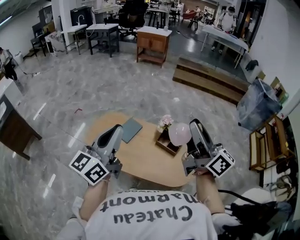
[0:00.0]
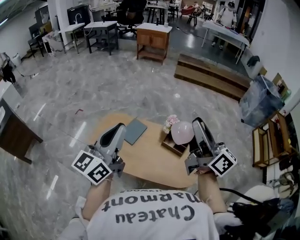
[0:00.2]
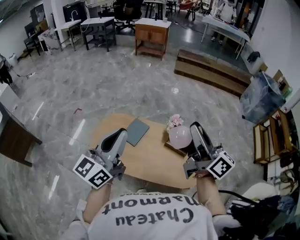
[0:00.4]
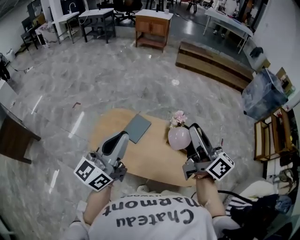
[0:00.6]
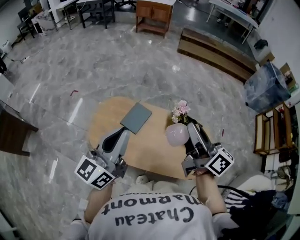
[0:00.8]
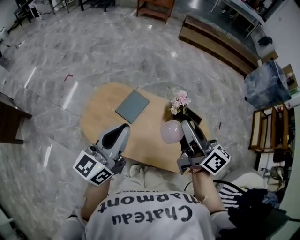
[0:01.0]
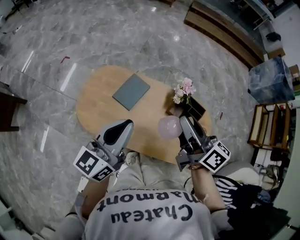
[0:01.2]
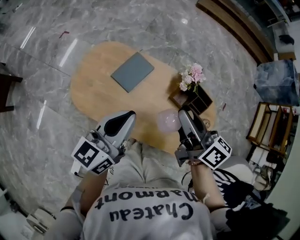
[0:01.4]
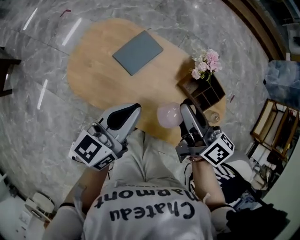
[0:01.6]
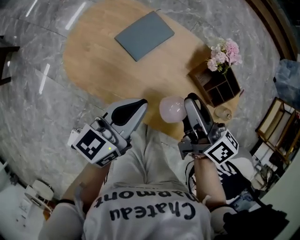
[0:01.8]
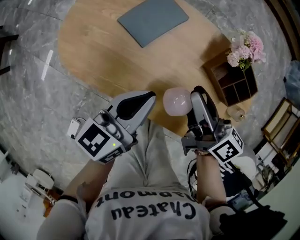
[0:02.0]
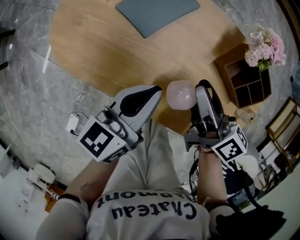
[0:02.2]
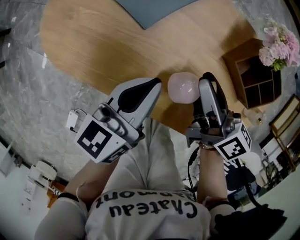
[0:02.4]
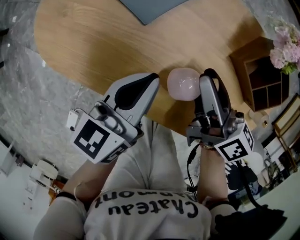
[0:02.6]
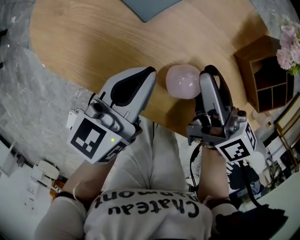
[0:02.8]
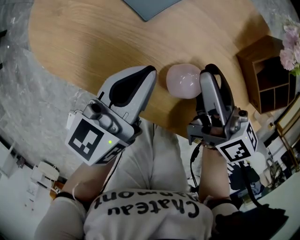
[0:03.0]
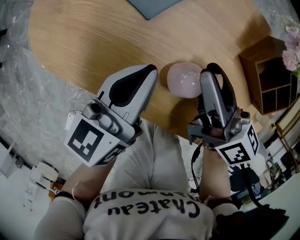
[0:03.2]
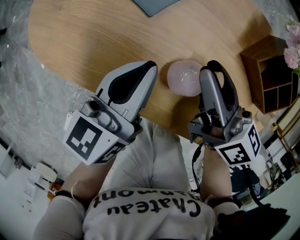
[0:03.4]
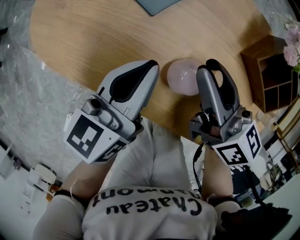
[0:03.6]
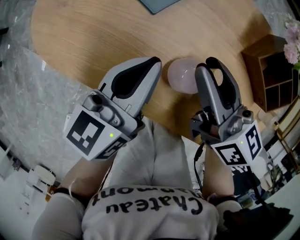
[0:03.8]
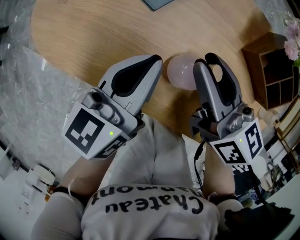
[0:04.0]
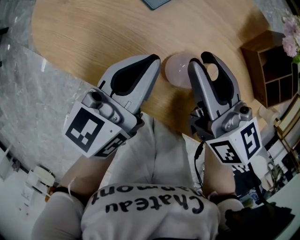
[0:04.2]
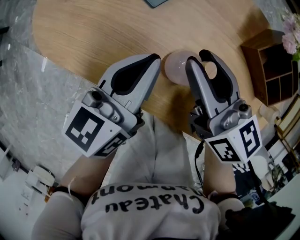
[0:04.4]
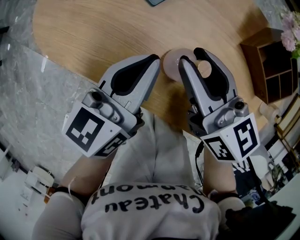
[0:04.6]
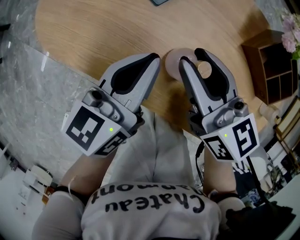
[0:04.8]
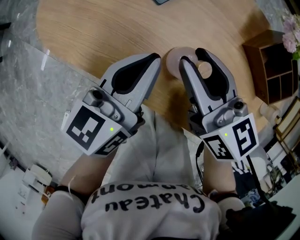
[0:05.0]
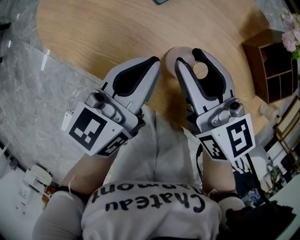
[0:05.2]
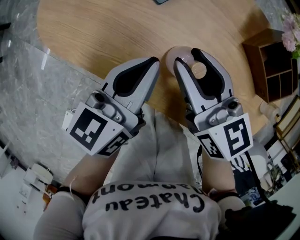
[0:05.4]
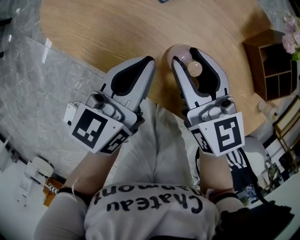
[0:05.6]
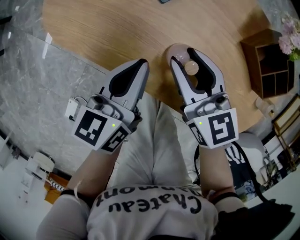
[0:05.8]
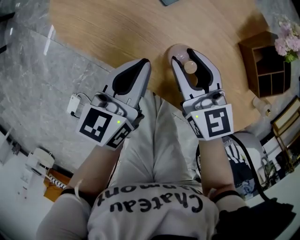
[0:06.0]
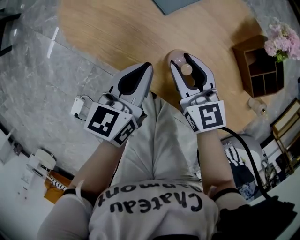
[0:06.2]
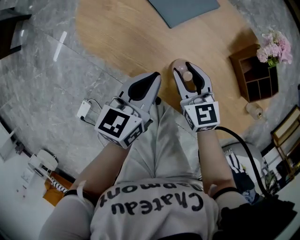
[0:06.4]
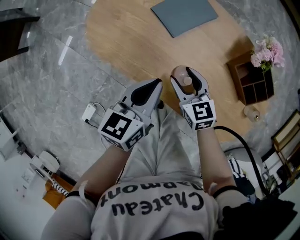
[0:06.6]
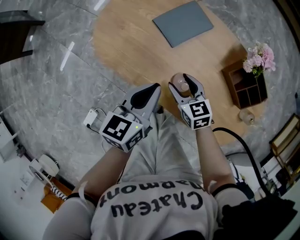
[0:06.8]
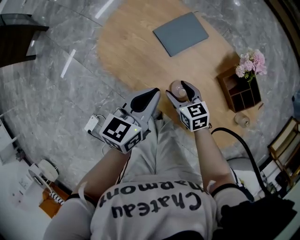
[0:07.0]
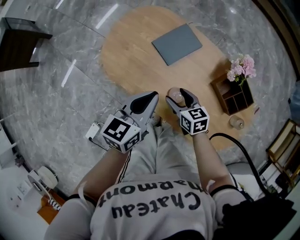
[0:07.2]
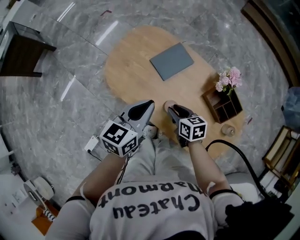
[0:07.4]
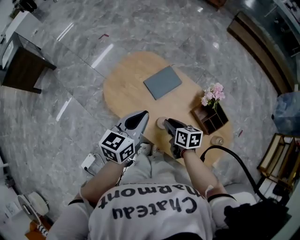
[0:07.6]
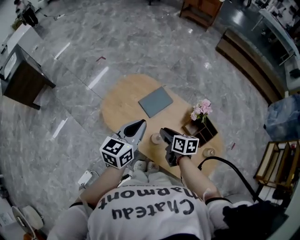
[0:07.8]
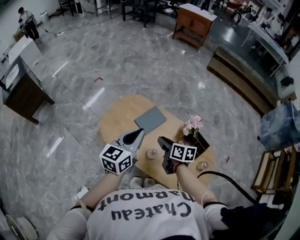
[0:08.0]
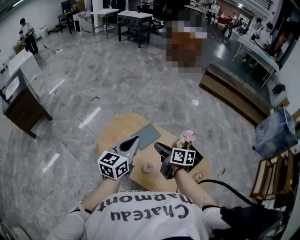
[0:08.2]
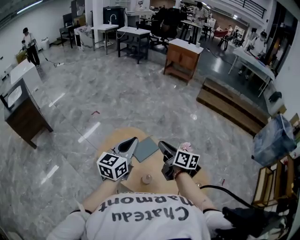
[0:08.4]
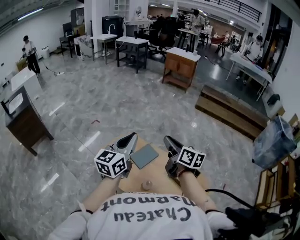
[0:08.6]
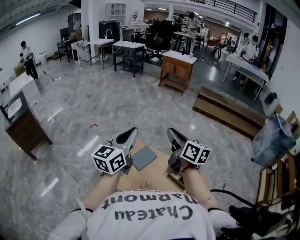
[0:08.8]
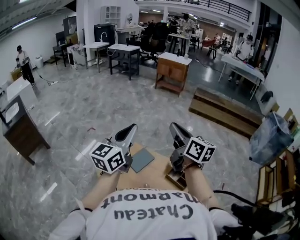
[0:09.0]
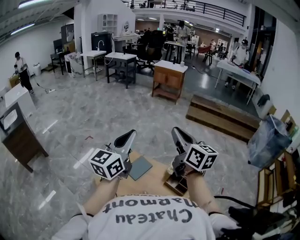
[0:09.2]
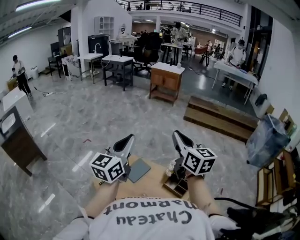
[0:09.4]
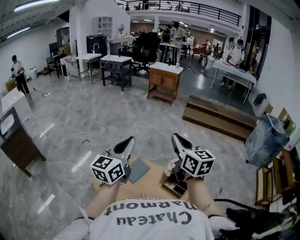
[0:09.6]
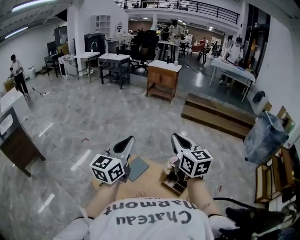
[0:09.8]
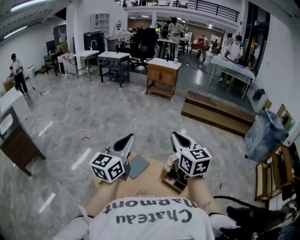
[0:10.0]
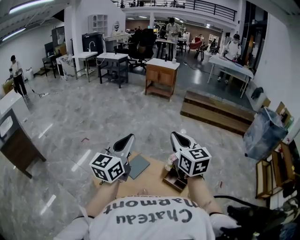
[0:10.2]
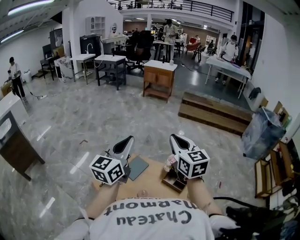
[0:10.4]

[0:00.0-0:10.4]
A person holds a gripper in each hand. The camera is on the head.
0:00.0 to 0:01.4: The right gripper shifts roughly 35 cm downward, forward and to the left, and rotates some 30 degrees, while the left gripper goes about 30 cm downward and forward, and turns by roughly 20 degrees.
0:01.4 to 0:03.0: The grippers both shift downward by roughly 30 cm.
0:03.0 to 0:04.4: The right gripper moves about 5 cm, and swivels approximately 30 degrees.
0:04.4 to 0:06.0: There are only small adjustments of the grippers.
0:06.0 to 0:07.4: The left gripper goes roughly 20 cm upward; the right gripper is displaced upward by about 5 cm, rotates approximately 30 degrees, and opens and closes again.
0:07.4 to 0:09.0: Both grippers move upward, approximately 40 cm. The left gripper points its fingers roughly 30 degrees further upward. Meanwhile the right gripper tilts its fingers roughly 50 degrees upward, and closes up.
0:09.0 to 0:10.4: The right gripper shifts by some 5 cm, and rotates approximately 30 degrees.

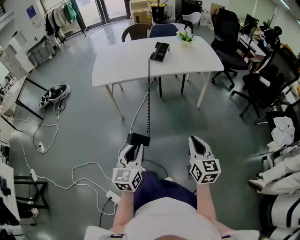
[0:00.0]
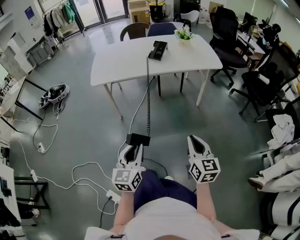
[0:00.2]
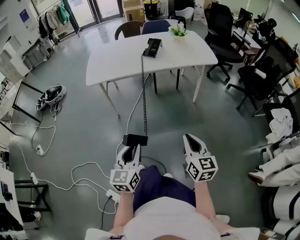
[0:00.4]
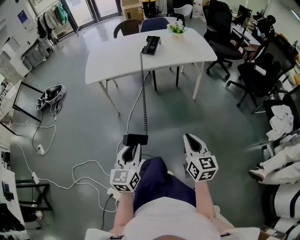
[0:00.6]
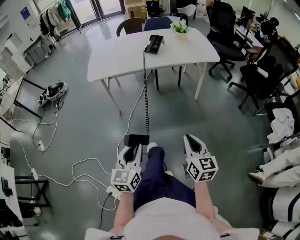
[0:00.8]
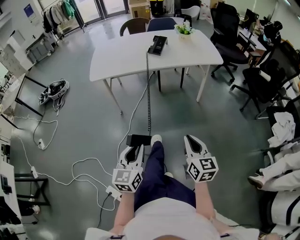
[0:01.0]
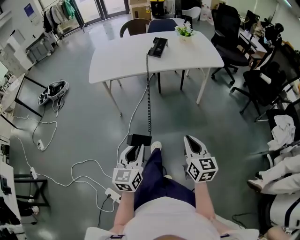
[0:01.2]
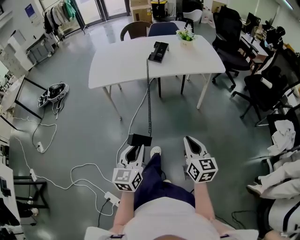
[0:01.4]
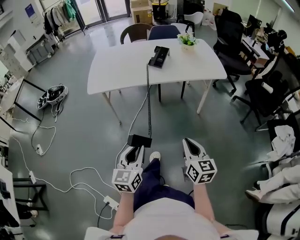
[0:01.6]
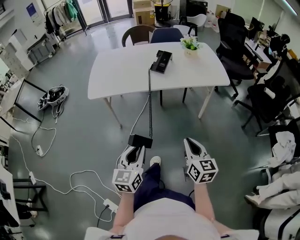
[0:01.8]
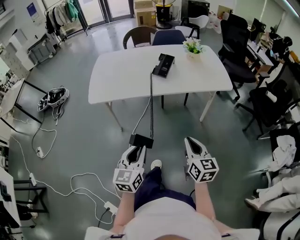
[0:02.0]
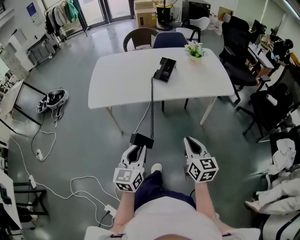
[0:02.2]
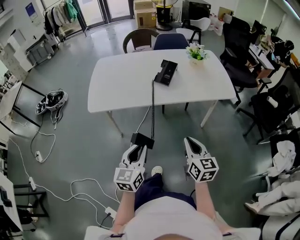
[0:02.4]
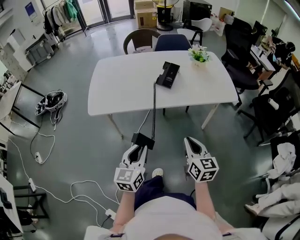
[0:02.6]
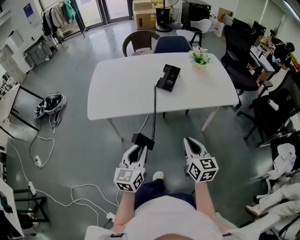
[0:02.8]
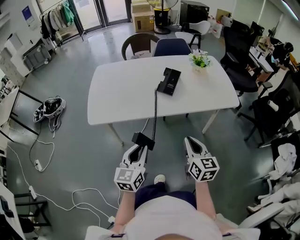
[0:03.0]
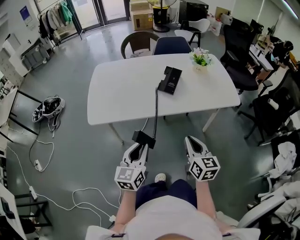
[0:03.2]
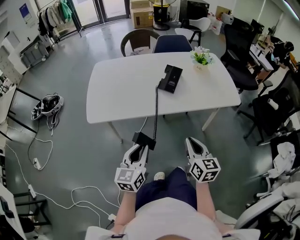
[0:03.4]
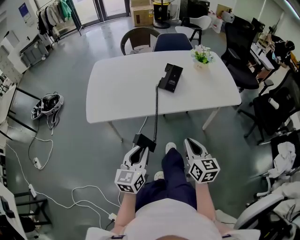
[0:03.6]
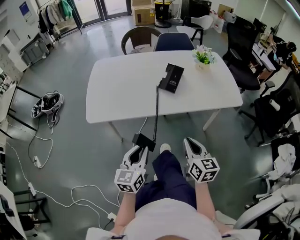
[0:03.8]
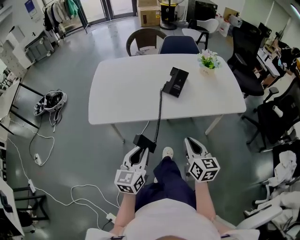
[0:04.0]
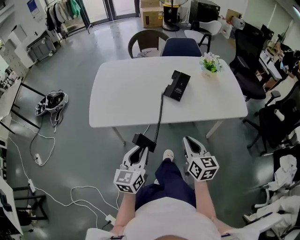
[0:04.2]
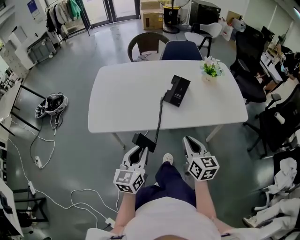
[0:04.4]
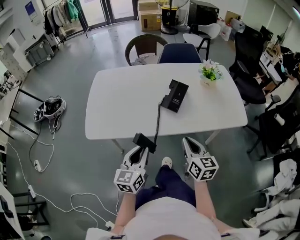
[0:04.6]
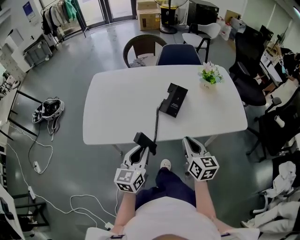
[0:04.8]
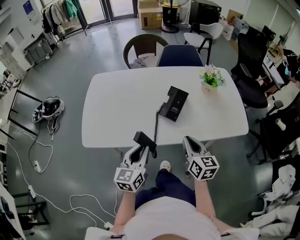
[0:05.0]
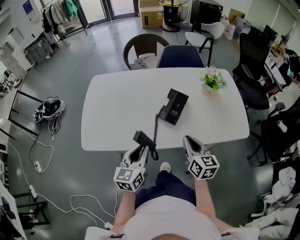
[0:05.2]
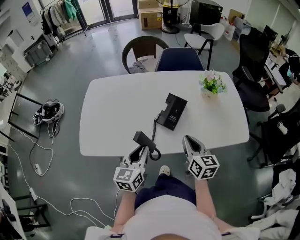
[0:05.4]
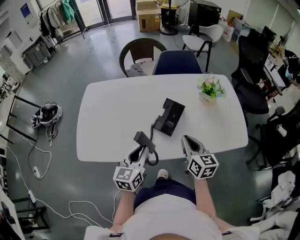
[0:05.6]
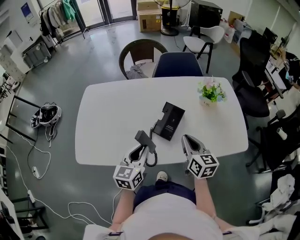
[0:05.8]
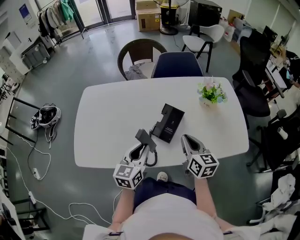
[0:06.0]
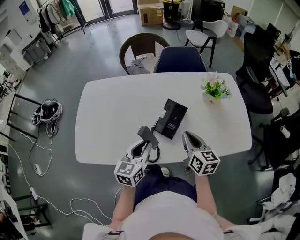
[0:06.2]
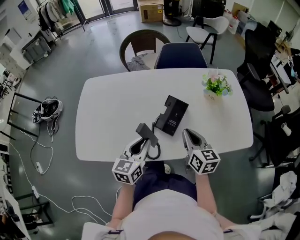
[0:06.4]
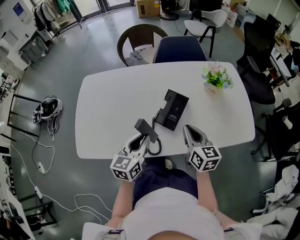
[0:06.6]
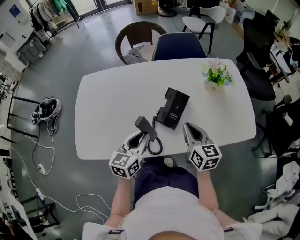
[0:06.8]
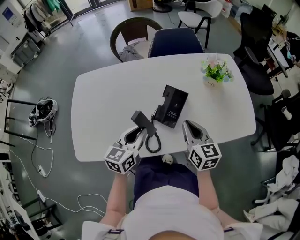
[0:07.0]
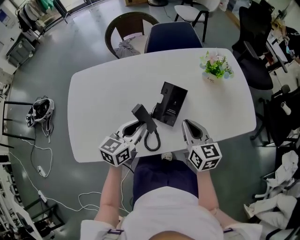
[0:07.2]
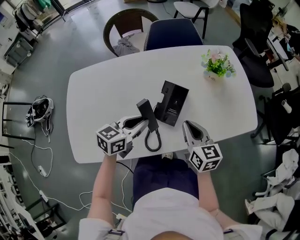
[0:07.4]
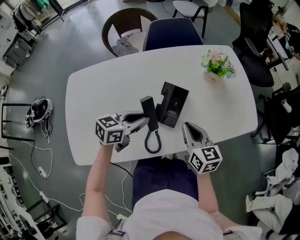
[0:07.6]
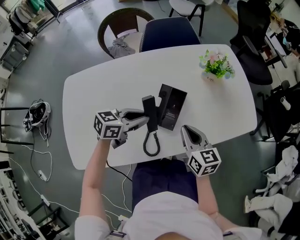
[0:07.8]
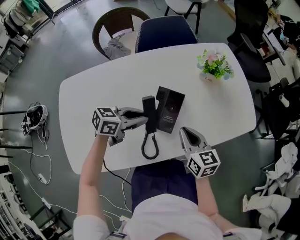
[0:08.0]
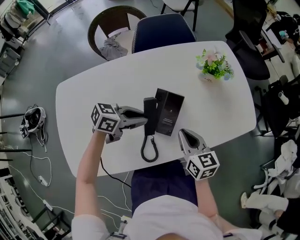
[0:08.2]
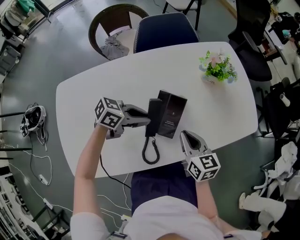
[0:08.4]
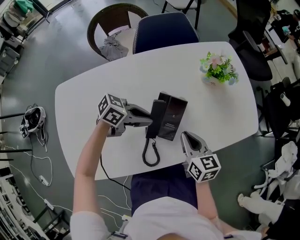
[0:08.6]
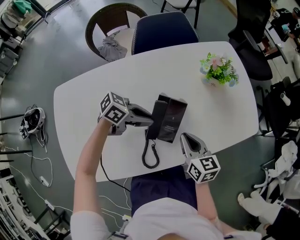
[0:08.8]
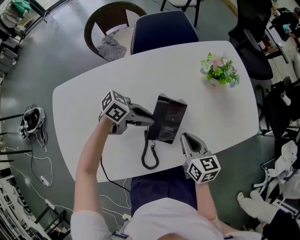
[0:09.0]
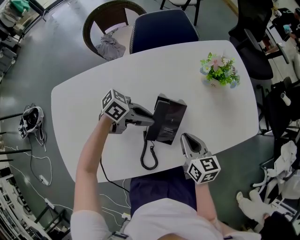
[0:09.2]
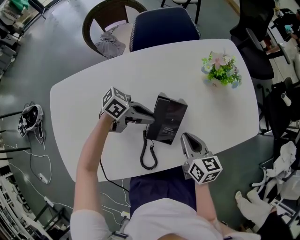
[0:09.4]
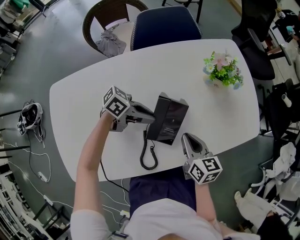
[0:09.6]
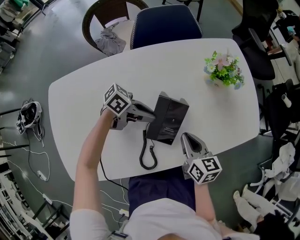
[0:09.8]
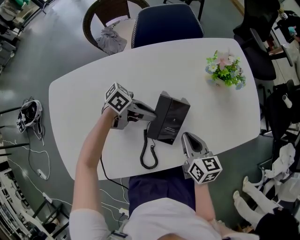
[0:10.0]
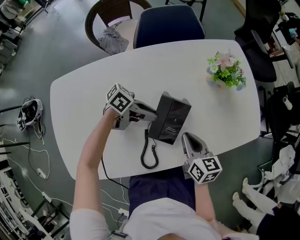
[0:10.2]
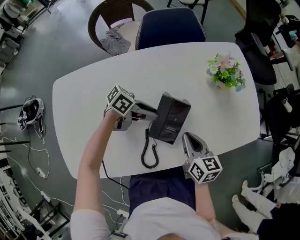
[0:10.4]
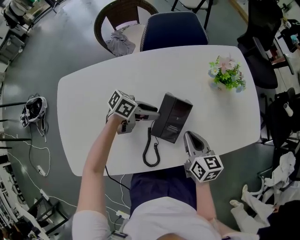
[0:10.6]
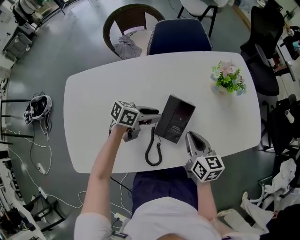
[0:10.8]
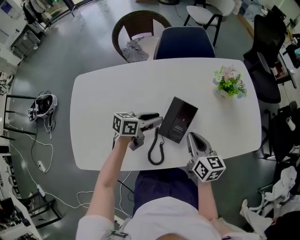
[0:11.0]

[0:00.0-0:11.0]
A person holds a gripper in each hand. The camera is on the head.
0:00.0 to 0:01.6: Both grippers move forward, about 10 cm.
0:01.6 to 0:03.2: Both grippers move forward, approximately 25 cm.
0:03.2 to 0:04.8: The grippers both shift forward by some 15 cm.
0:04.8 to 0:06.2: Both grippers move forward, roughly 15 cm.
0:06.2 to 0:07.8: The left gripper moves about 10 cm, and rotates about 50 degrees.
0:07.8 to 0:09.4: The right gripper moves roughly 5 cm. Meanwhile the left gripper ends up roughly 10 cm from where it was, and turns by some 40 degrees.
0:09.4 to 0:11.0: The left gripper turns by approximately 50 degrees.

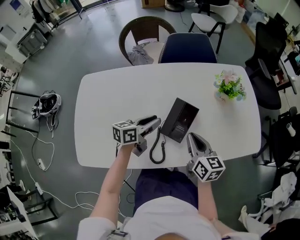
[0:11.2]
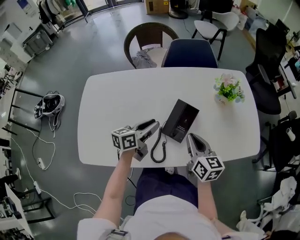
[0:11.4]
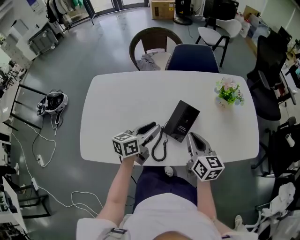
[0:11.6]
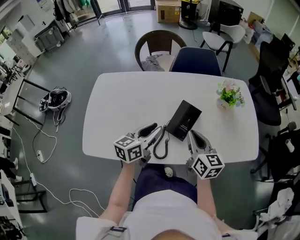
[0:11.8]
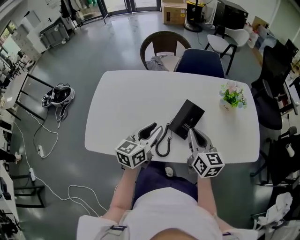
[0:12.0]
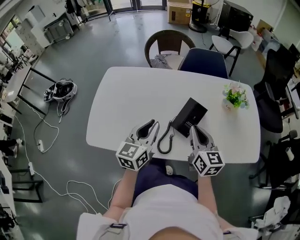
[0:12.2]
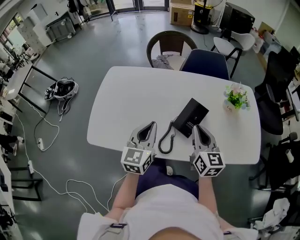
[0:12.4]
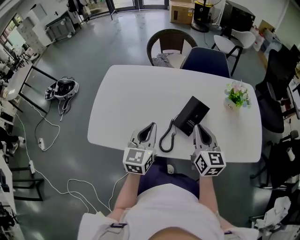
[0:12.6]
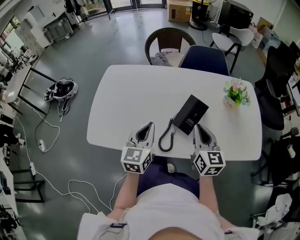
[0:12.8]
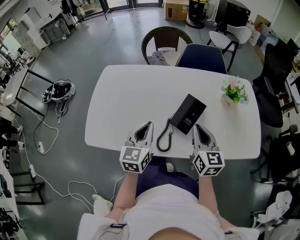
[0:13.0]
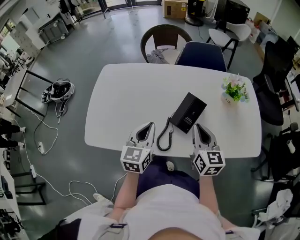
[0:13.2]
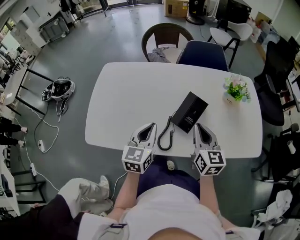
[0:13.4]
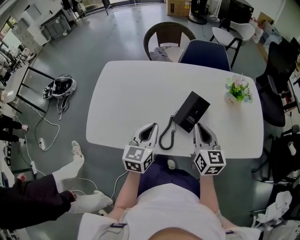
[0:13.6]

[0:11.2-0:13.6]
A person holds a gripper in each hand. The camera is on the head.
0:11.2 to 0:12.4: The left gripper goes roughly 20 cm upward, backward and to the left, changes its angle by about 50 degrees, and closes its fingers. The right gripper moves upward, about 10 cm.
0:12.4 to 0:13.6: The grippers make only small movements.
